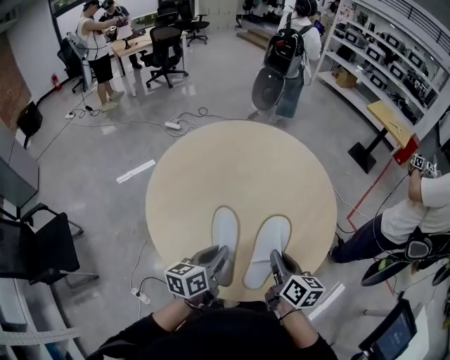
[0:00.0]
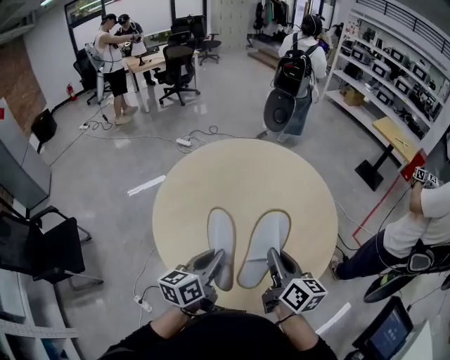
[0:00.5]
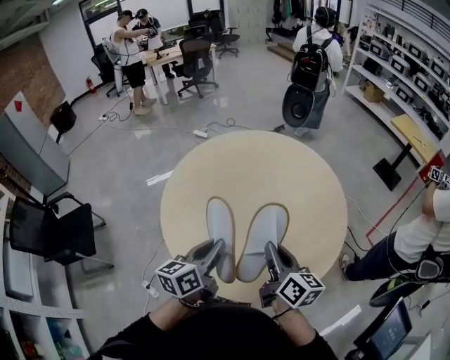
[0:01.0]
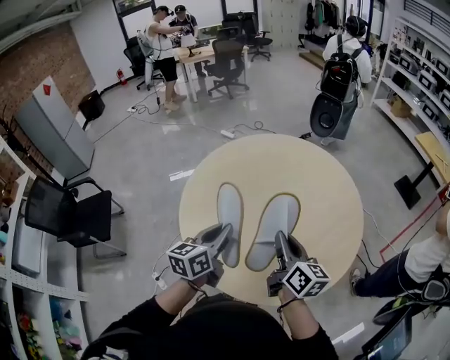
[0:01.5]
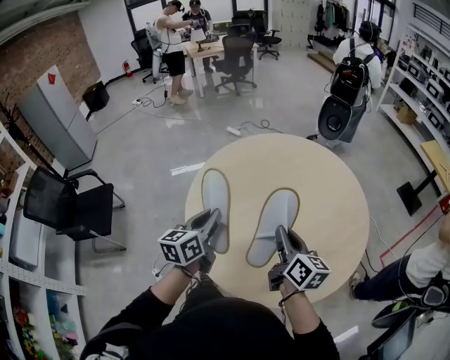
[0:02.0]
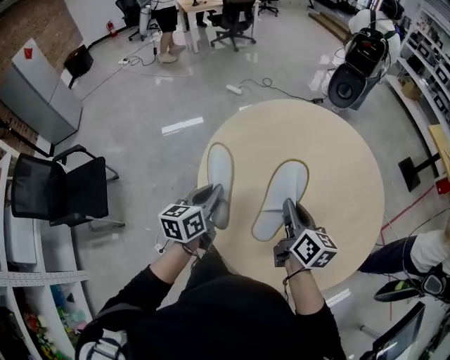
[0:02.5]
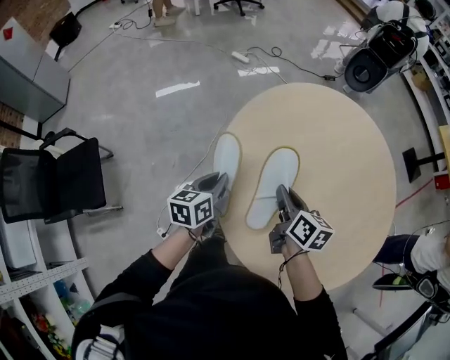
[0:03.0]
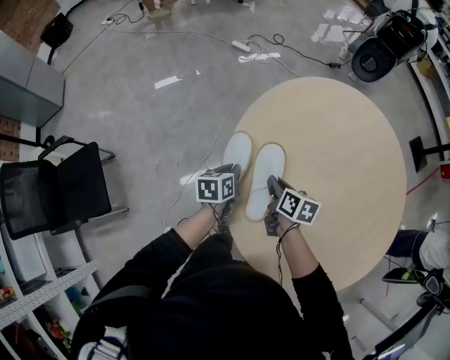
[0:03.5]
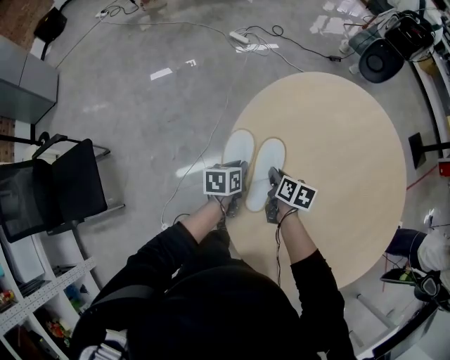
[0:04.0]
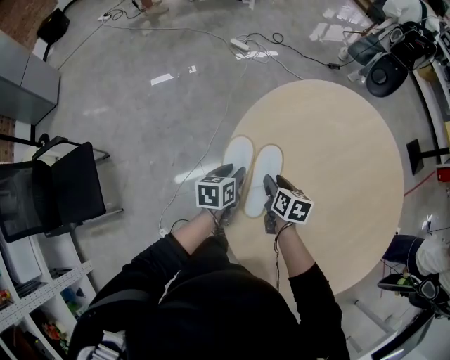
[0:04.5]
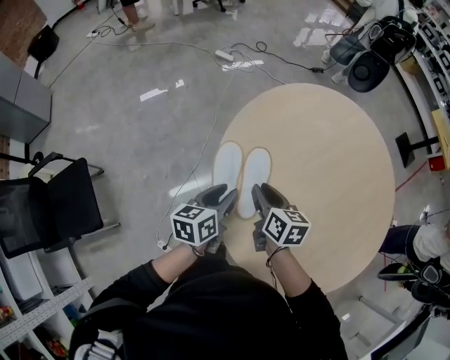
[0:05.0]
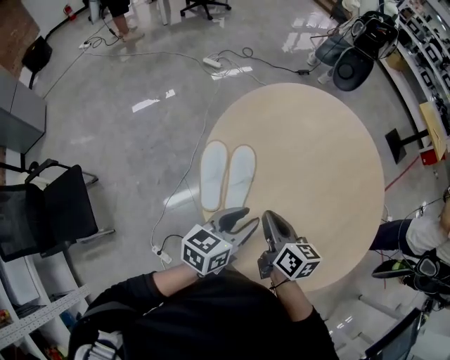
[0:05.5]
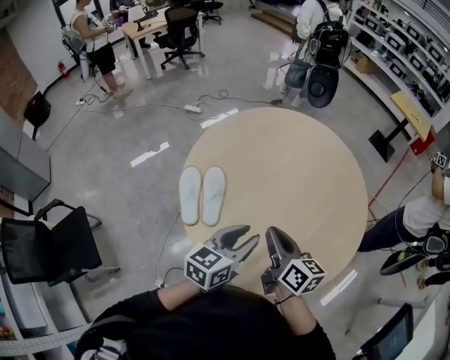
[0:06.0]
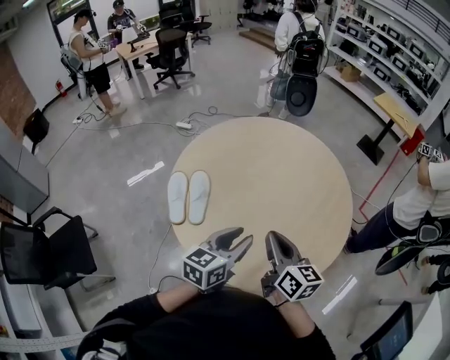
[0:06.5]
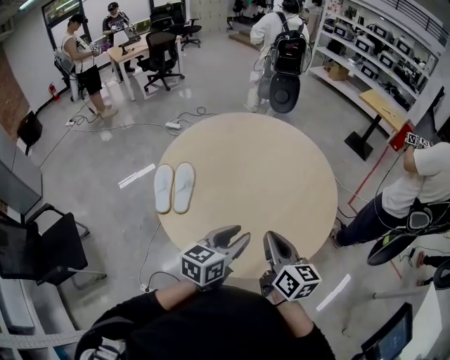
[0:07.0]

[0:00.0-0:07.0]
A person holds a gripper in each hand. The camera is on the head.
0:00.0 to 0:02.0: The right gripper moves upward and to the left, approximately 10 cm, and rotates about 20 degrees. Meanwhile the left gripper moves to the left and upward, approximately 10 cm, and rotates about 30 degrees.
0:02.0 to 0:03.5: The right gripper shifts about 50 cm to the left, forward and downward, and angles its fingers downward, by approximately 30 degrees. The left gripper shifts approximately 50 cm forward, downward and to the left, and swivels approximately 30 degrees.
0:03.5 to 0:05.0: The left gripper heads upward, covering some 10 cm, and opens up. Meanwhile the right gripper goes about 5 cm upward, and opens up.
0:05.0 to 0:07.0: Both grippers are carried to the right and backward, approximately 50 cm. The right gripper heads upward, covering about 20 cm, rotates roughly 30 degrees, and closes up. Meanwhile the left gripper swivels roughly 30 degrees.

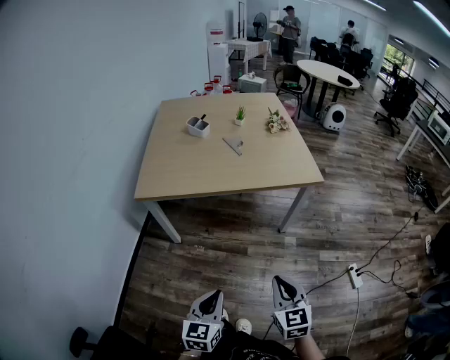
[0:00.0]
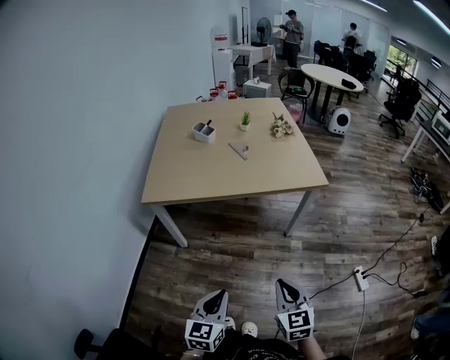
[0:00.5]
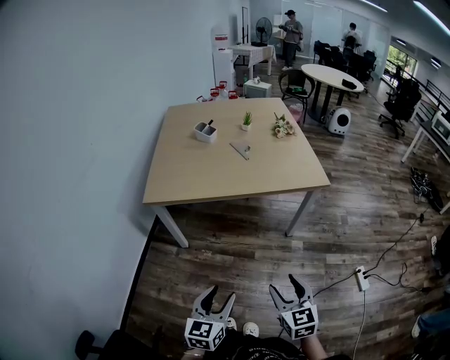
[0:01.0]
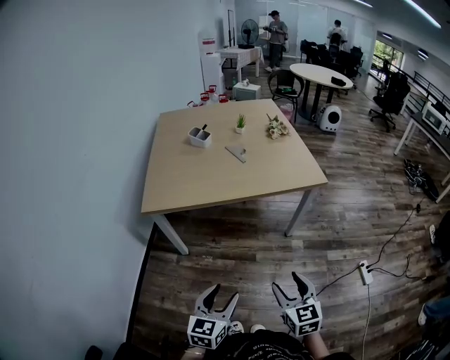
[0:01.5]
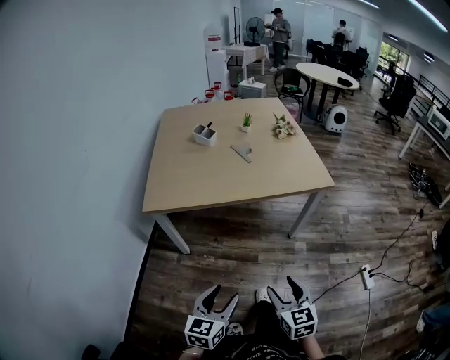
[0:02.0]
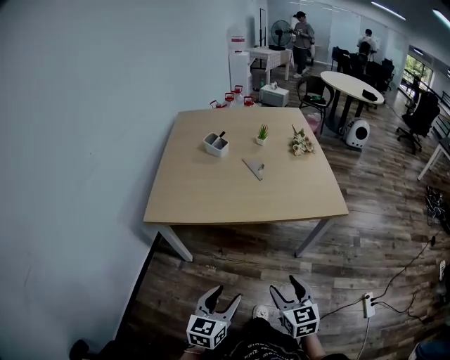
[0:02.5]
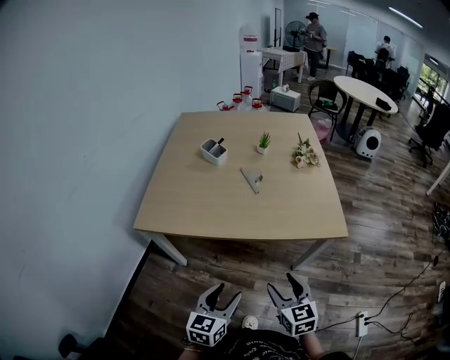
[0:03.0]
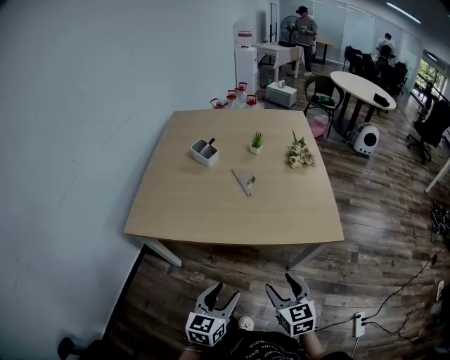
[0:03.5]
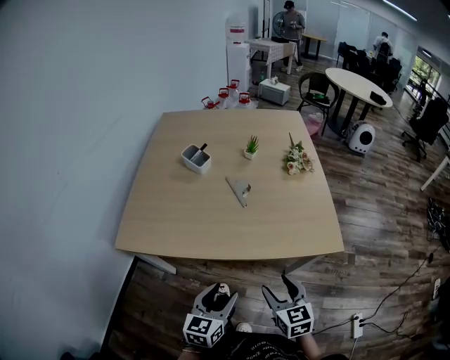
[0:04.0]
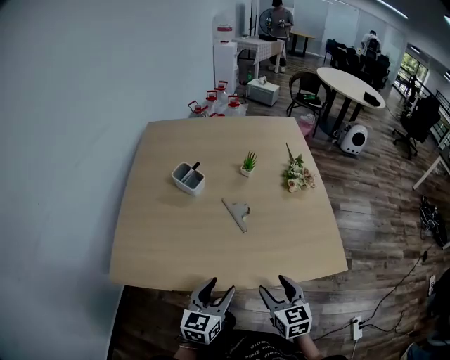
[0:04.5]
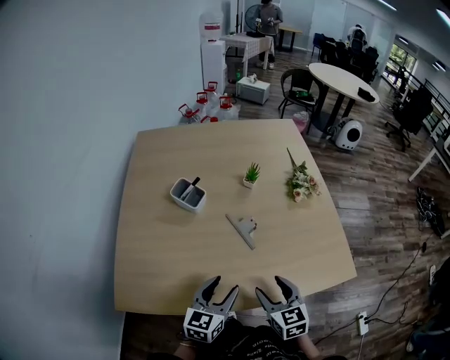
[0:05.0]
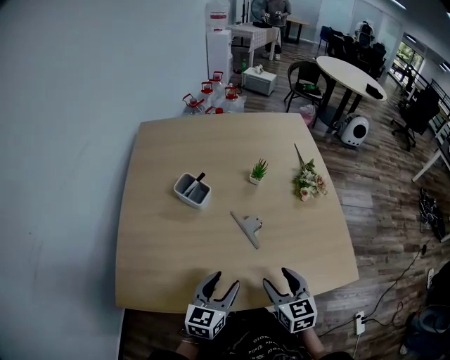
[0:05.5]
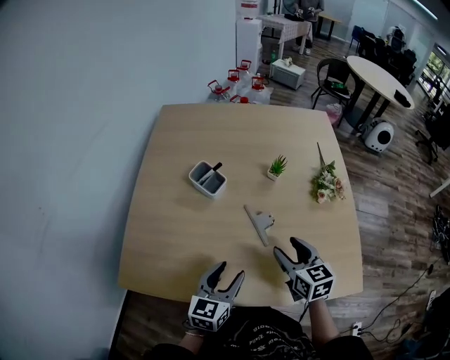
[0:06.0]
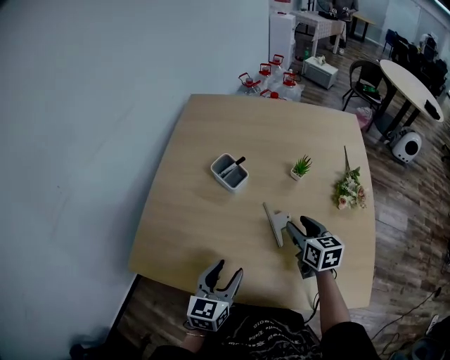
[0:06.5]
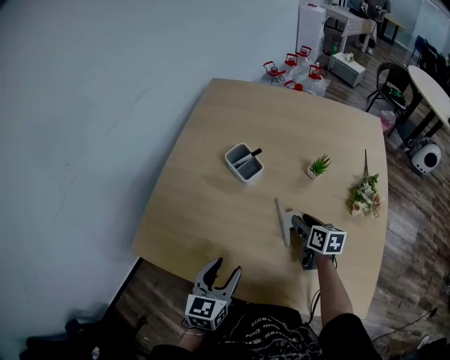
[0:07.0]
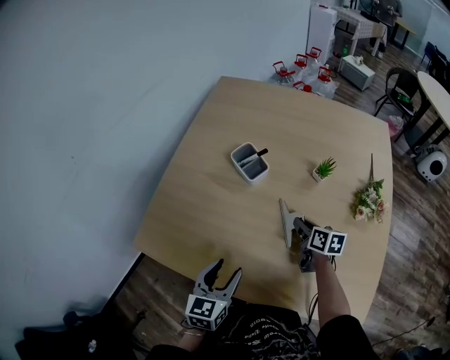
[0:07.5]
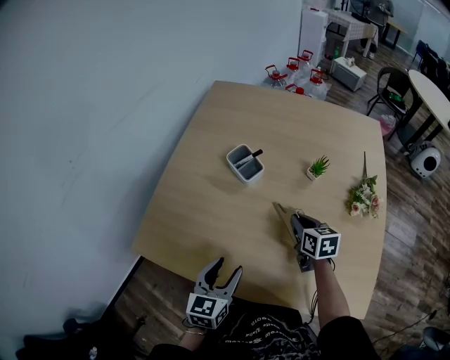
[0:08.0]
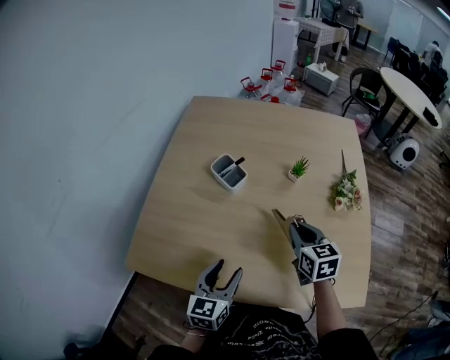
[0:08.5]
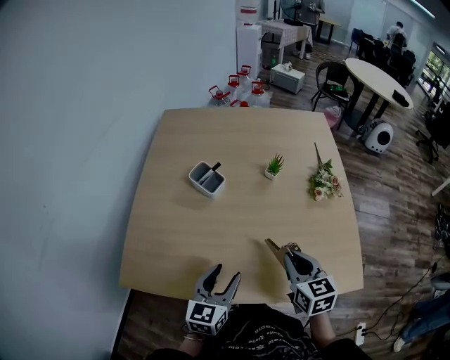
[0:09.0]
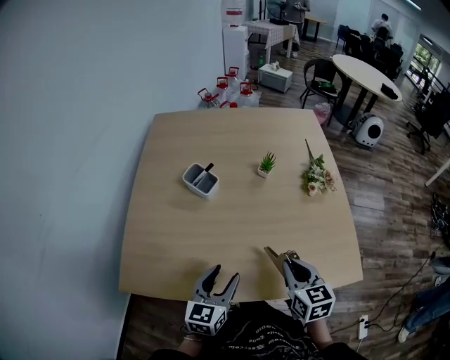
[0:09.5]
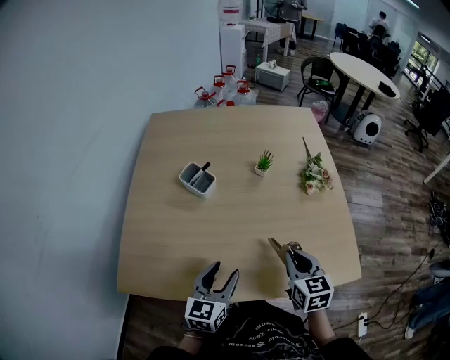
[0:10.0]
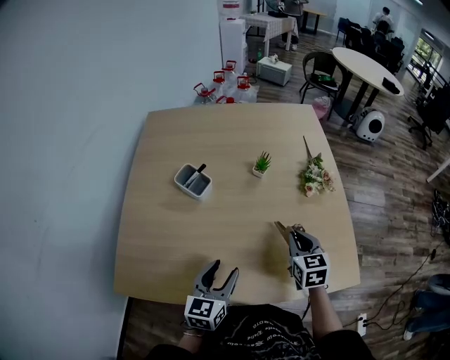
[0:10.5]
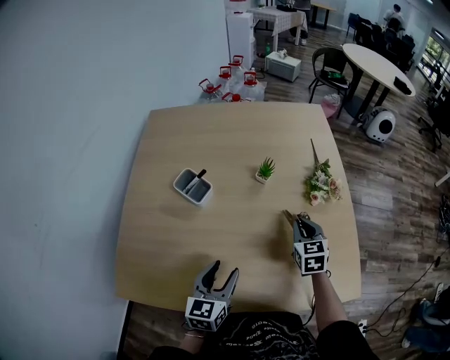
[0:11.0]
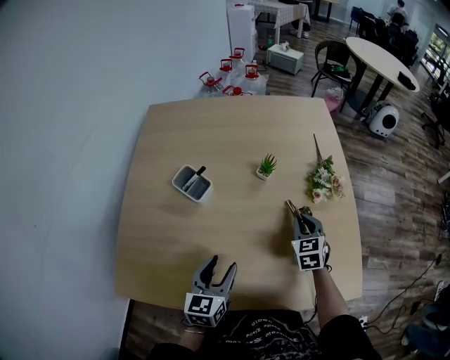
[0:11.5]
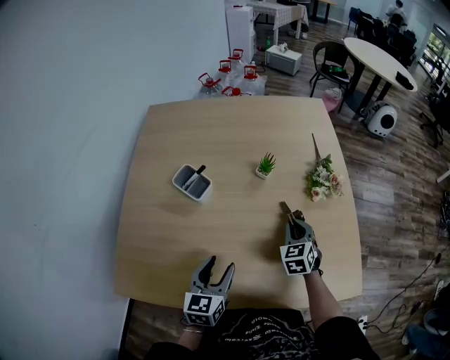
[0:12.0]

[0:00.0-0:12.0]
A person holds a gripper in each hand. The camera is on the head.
0:00.0 to 0:02.0: The right gripper ends up about 5 cm from where it was, and opens up, while the left gripper ends up roughly 5 cm from where it was, and opens its fingers.
0:02.0 to 0:04.0: The grippers both shift forward by about 30 cm.
0:04.0 to 0:06.0: Both grippers move forward, about 30 cm.
0:06.0 to 0:08.0: The right gripper heads forward and downward, covering approximately 15 cm, and closes up.
0:08.0 to 0:10.0: The right gripper moves backward, upward and to the right, about 20 cm, and changes its angle by some 30 degrees. Meanwhile the left gripper rotates roughly 20 degrees.
0:10.0 to 0:12.0: The left gripper heads forward, covering roughly 10 cm. Meanwhile the right gripper heads forward and downward, covering about 20 cm, and changes its angle by approximately 30 degrees.

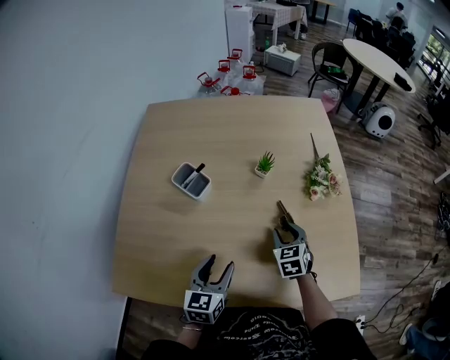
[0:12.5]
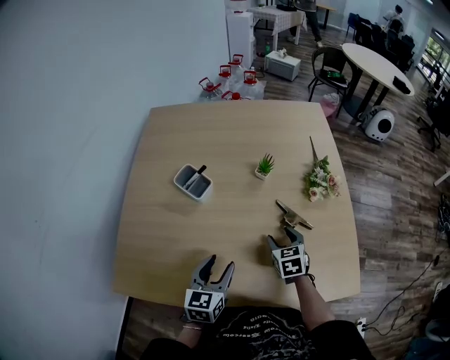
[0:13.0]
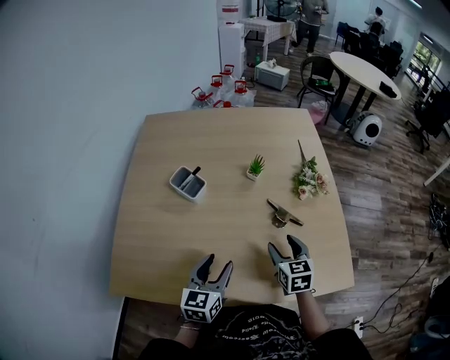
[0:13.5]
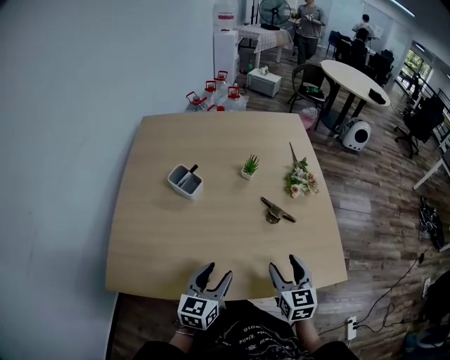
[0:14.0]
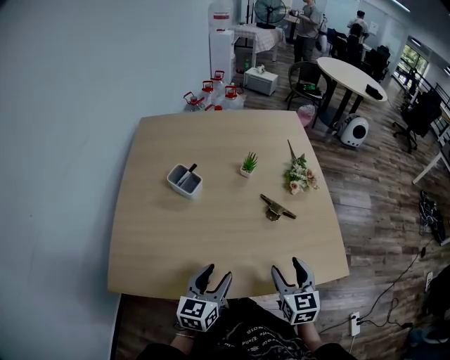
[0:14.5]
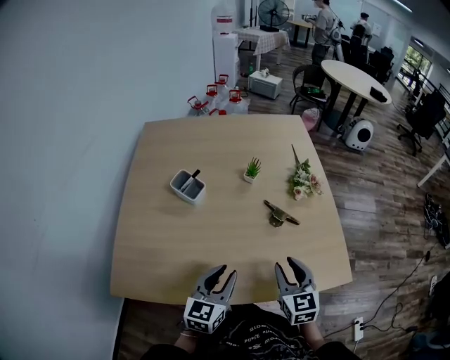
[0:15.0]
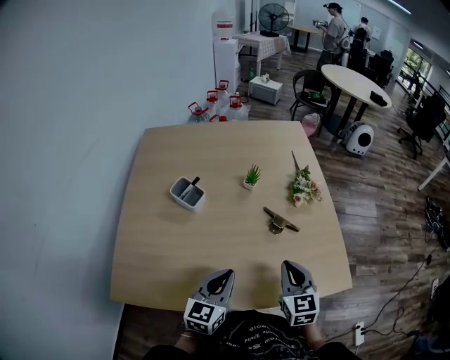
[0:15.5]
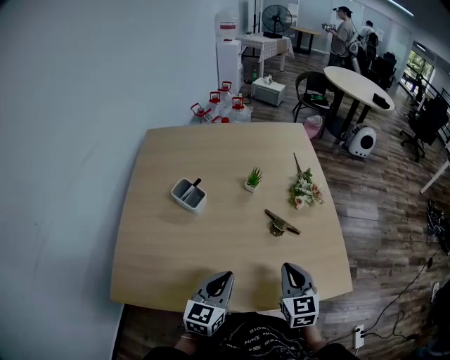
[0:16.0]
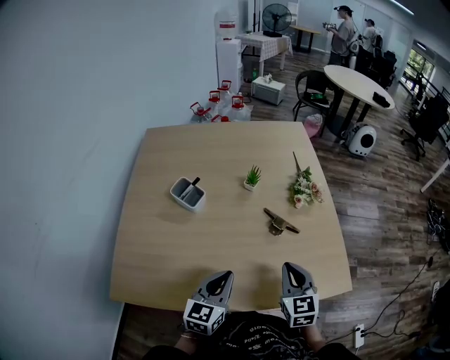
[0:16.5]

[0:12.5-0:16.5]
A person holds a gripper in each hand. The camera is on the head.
0:12.5 to 0:14.5: The right gripper is displaced backward and upward by some 20 cm, and changes its angle by some 20 degrees. Meanwhile the left gripper moves backward, some 10 cm.
0:14.5 to 0:16.5: The left gripper moves approximately 5 cm, and closes its fingers. Meanwhile the right gripper closes.

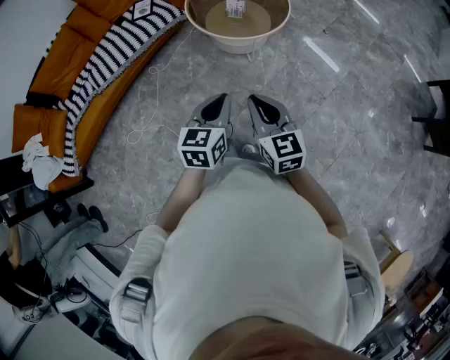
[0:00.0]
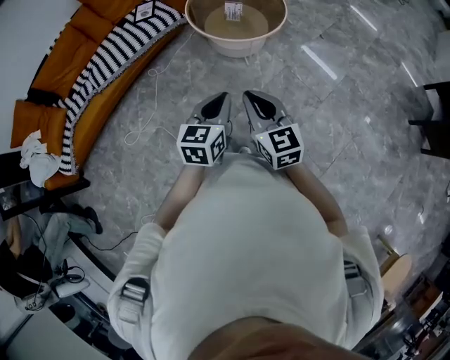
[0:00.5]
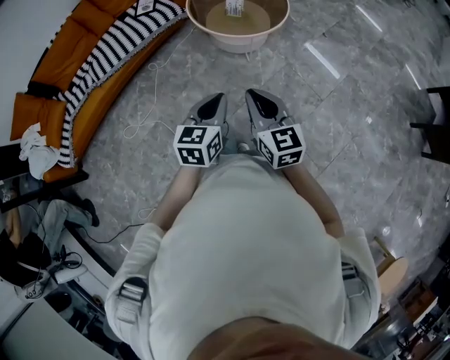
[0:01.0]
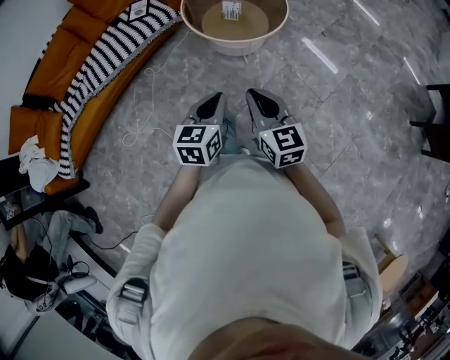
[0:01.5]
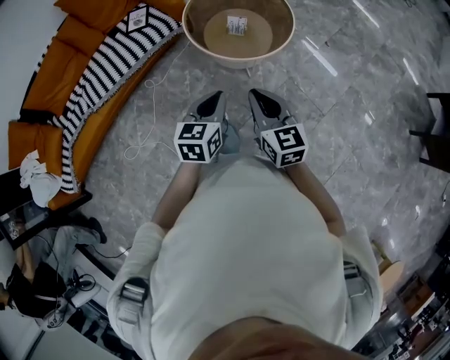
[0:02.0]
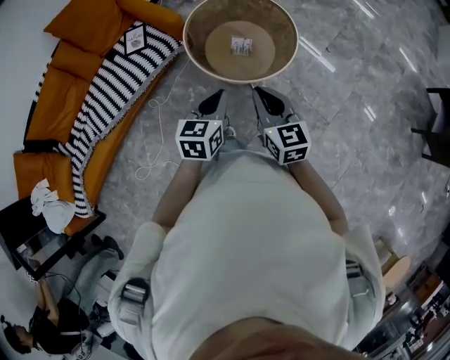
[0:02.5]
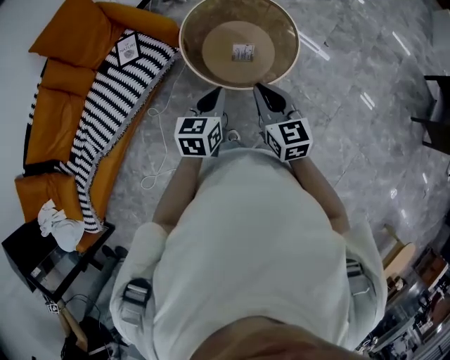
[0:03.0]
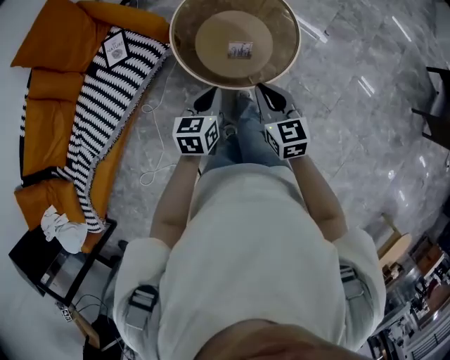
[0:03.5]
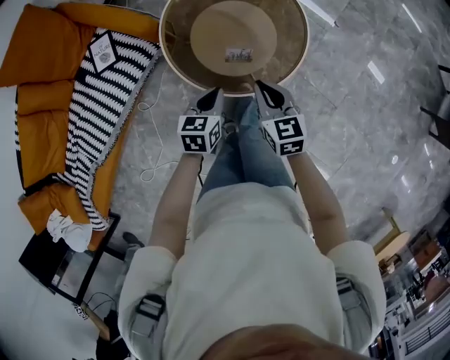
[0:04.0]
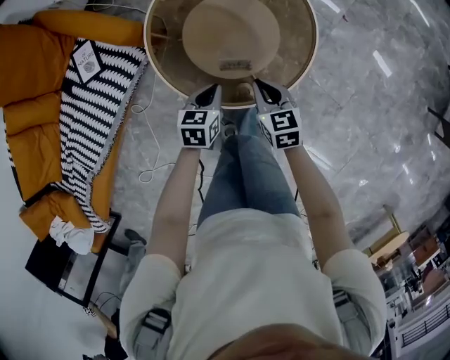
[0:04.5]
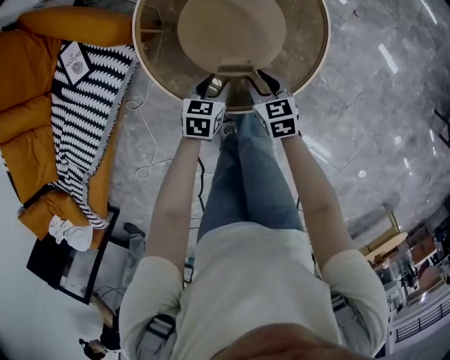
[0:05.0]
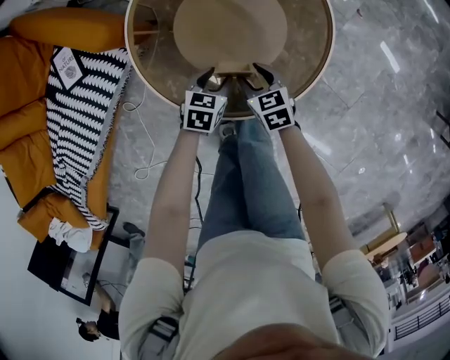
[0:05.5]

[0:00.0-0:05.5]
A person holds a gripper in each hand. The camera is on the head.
0:00.0 to 0:02.0: The two grippers go roughly 15 cm forward.
0:02.0 to 0:03.5: Both grippers travel together forward, approximately 25 cm.
0:03.5 to 0:05.5: The two grippers go roughly 35 cm downward and forward. The left gripper turns by roughly 20 degrees, and opens. Meanwhile the right gripper swivels about 30 degrees, and opens.
